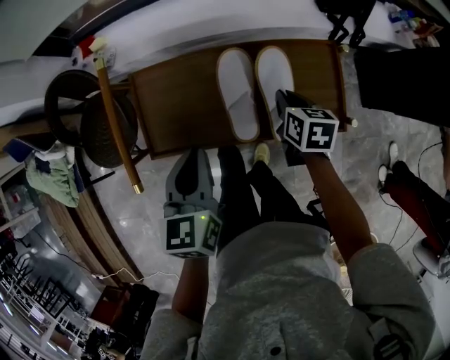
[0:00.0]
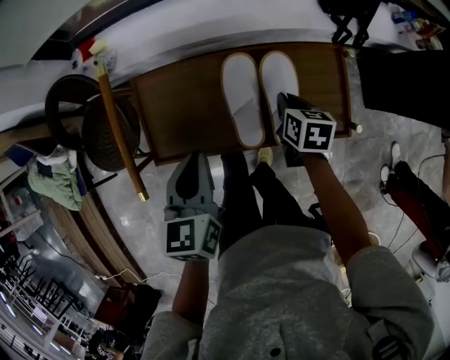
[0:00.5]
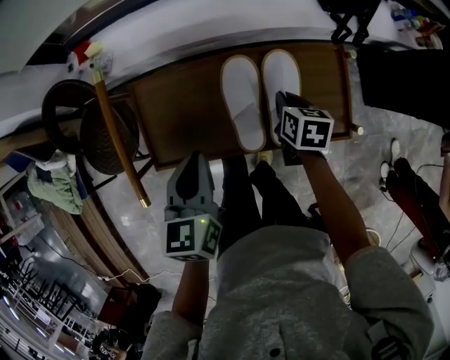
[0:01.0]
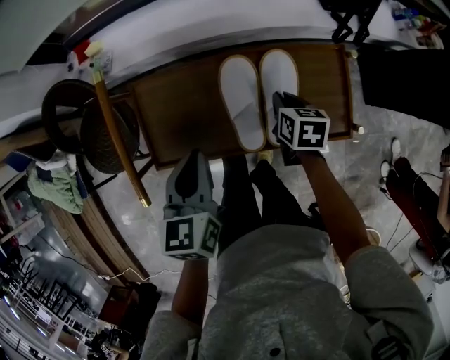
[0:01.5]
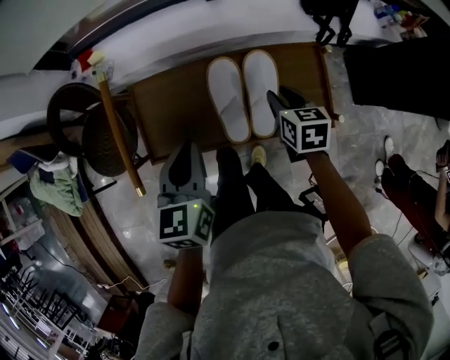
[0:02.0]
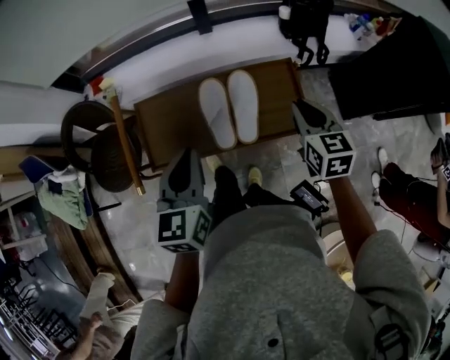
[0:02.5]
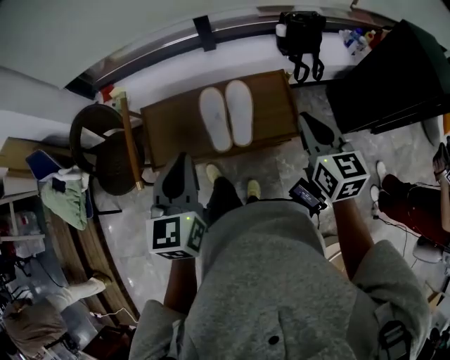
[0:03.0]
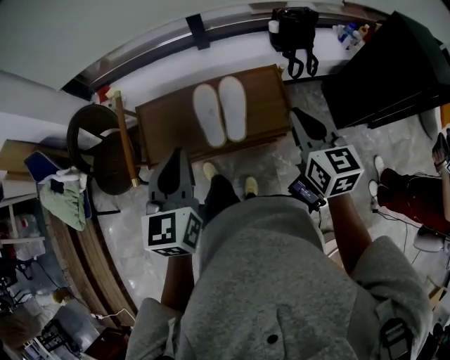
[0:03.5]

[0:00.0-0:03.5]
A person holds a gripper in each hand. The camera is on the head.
0:00.0 to 0:02.0: The right gripper opens.
0:02.0 to 0:03.5: The right gripper is displaced upward, backward and to the right by roughly 30 cm, turns by about 30 degrees, and closes its fingers; the left gripper is displaced upward and backward by about 20 cm.

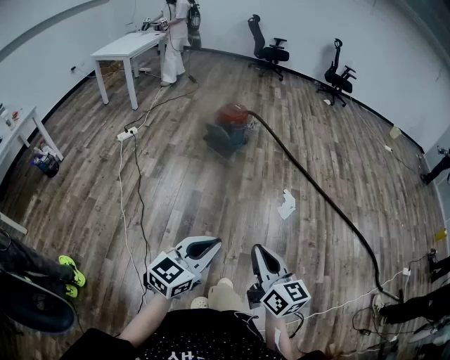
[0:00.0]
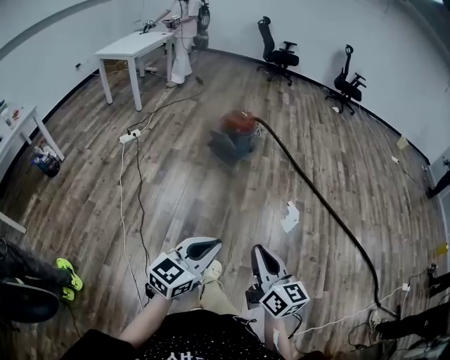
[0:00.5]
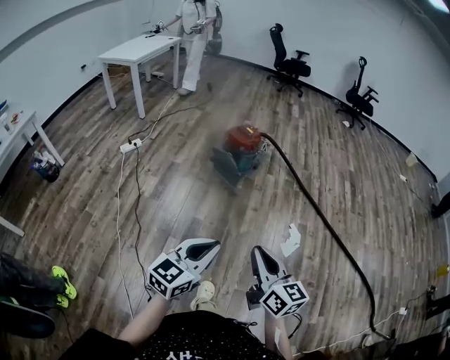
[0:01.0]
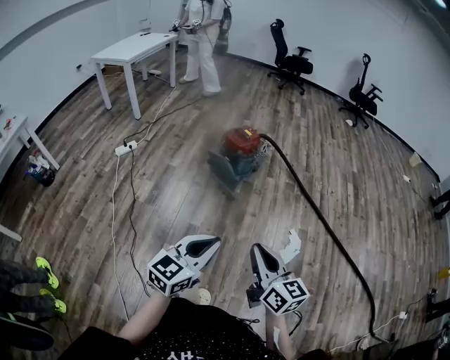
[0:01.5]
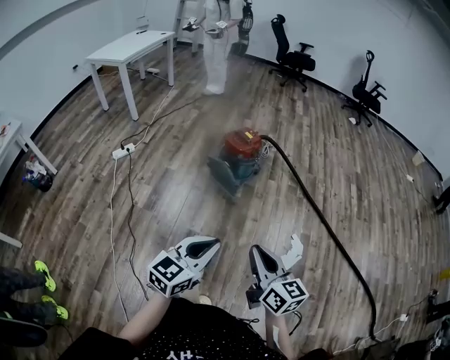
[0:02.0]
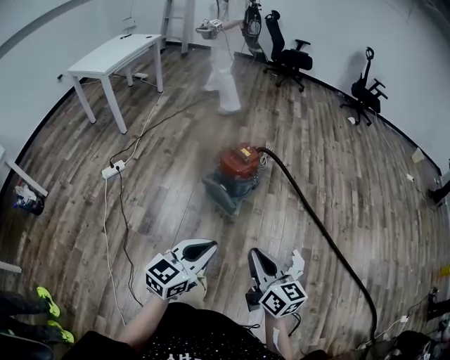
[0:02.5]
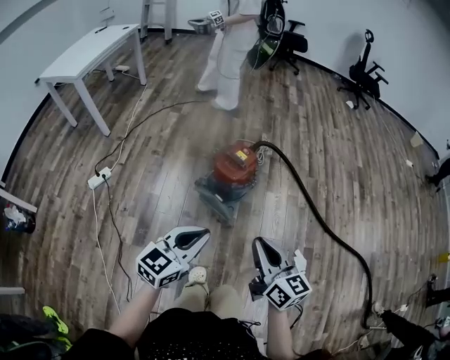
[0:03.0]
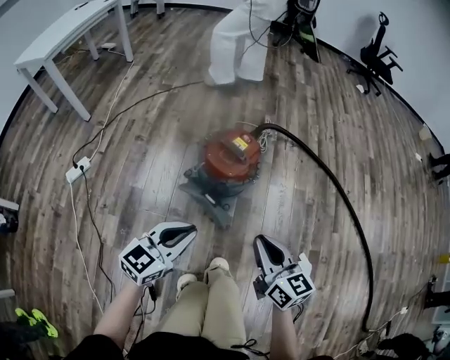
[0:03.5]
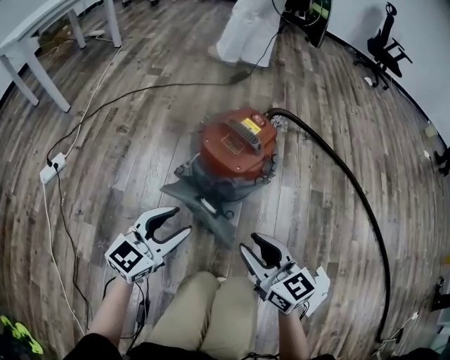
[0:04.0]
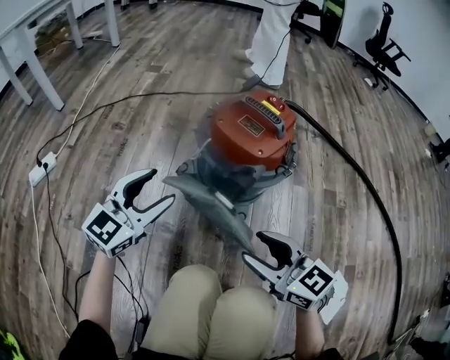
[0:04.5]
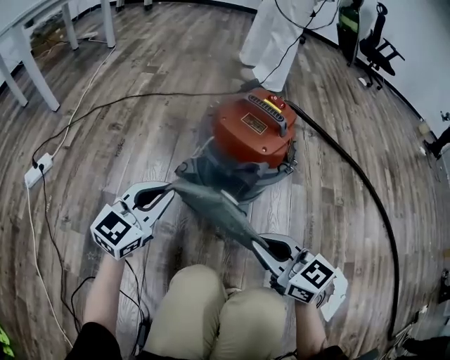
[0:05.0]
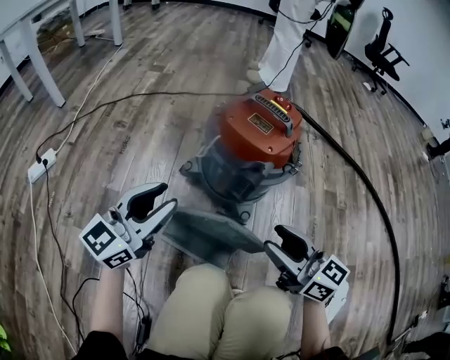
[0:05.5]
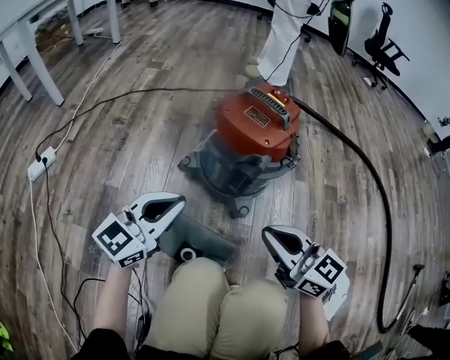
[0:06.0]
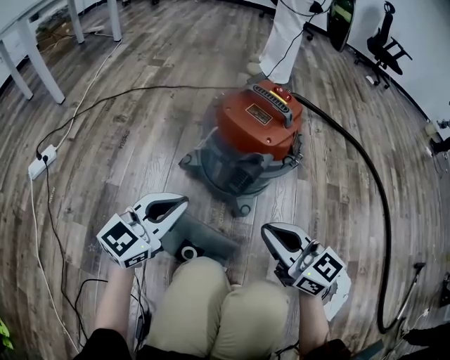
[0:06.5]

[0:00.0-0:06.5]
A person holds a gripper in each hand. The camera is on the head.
0:00.0 to 0:02.0: Both grippers are carried forward, some 40 cm.
0:02.0 to 0:04.5: The pair of grippers is taken forward, approximately 60 cm. The two grippers go roughly 50 cm downward. The left gripper opens its fingers; the right gripper swivels some 30 degrees, and opens up.
0:04.5 to 0:06.5: The left gripper travels backward by approximately 5 cm, and closes up. Meanwhile the right gripper closes up.

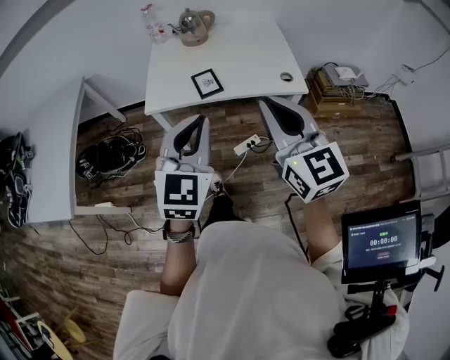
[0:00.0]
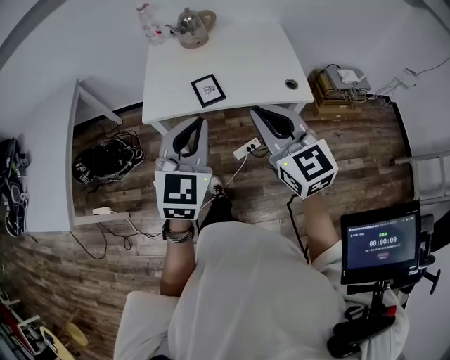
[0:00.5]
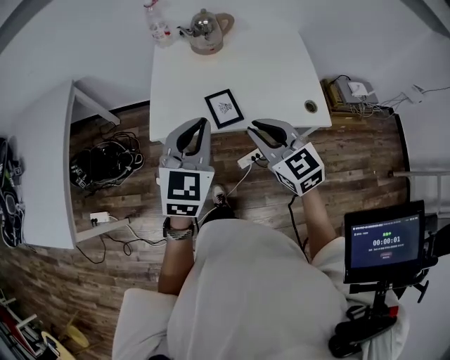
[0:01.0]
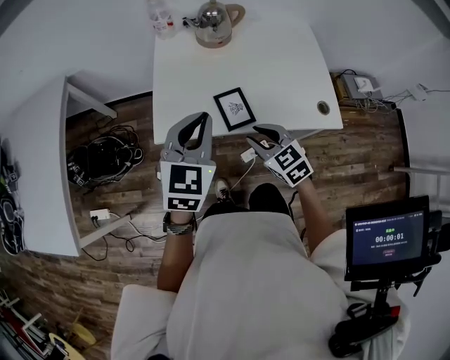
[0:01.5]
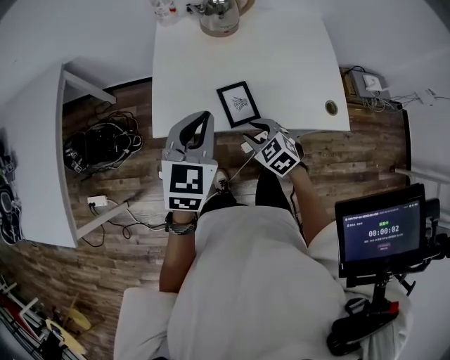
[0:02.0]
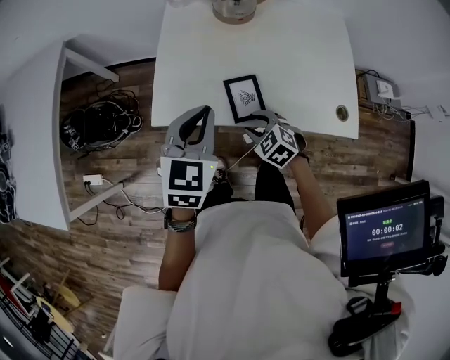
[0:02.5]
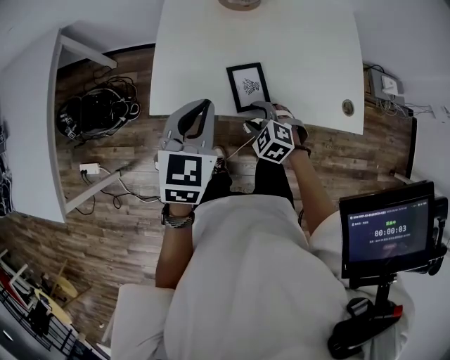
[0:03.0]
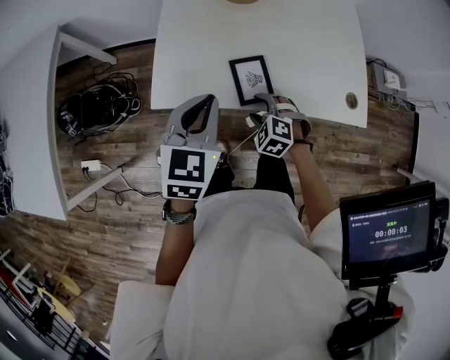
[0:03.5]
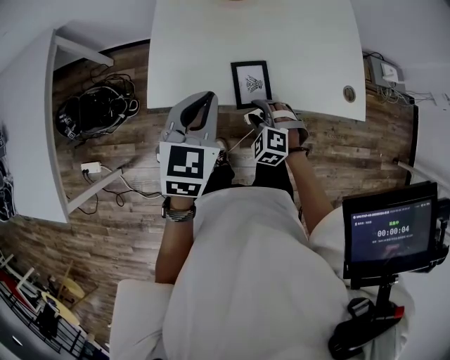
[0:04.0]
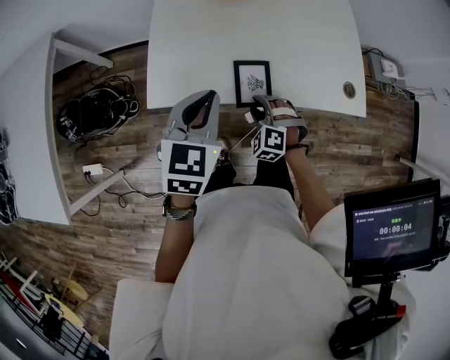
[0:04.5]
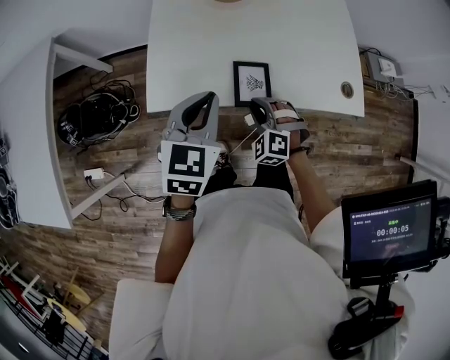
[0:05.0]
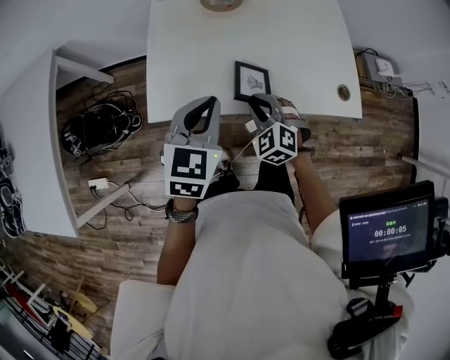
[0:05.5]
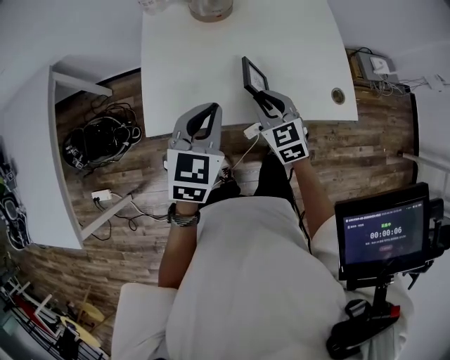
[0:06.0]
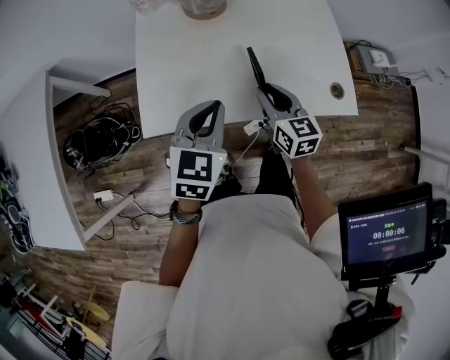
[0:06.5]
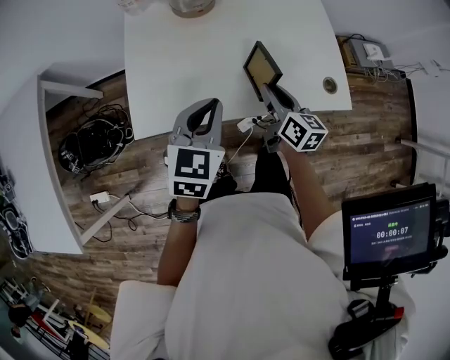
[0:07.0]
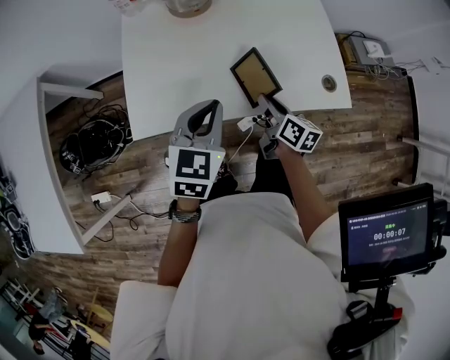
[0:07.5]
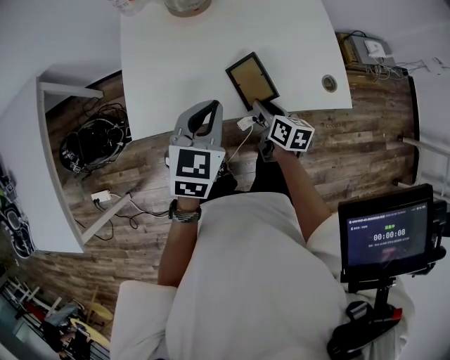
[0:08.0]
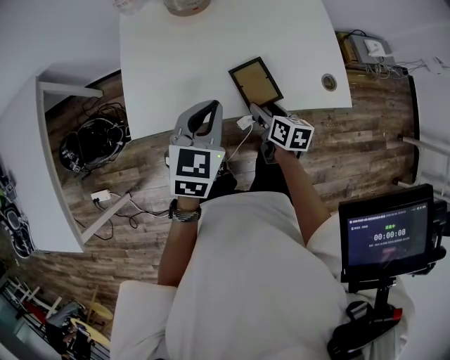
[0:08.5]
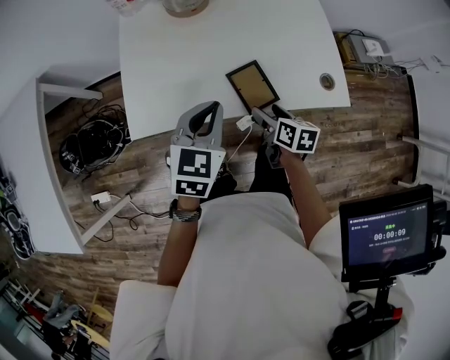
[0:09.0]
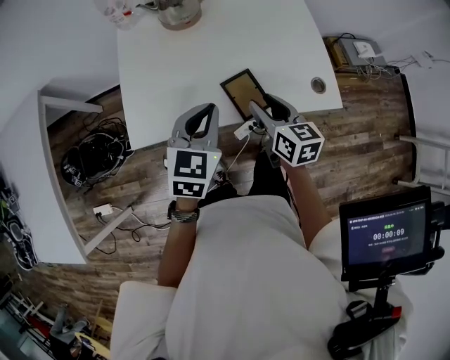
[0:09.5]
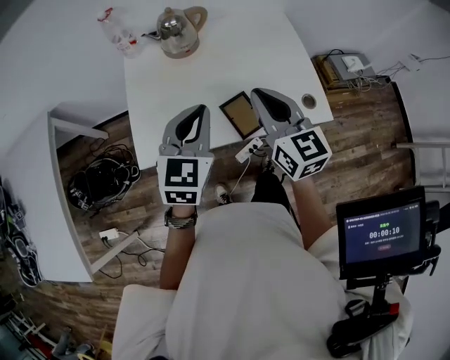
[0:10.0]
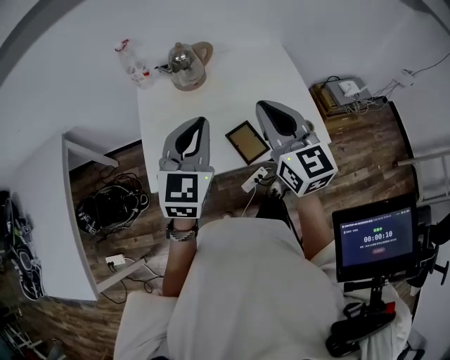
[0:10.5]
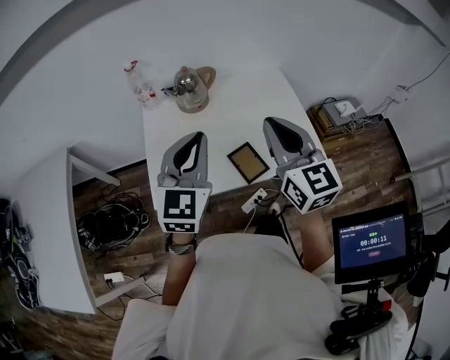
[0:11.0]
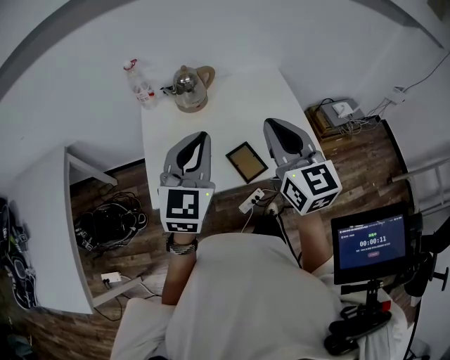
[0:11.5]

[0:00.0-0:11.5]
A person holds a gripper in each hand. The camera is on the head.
0:00.0 to 0:02.0: The left gripper shifts about 30 cm forward and downward; the right gripper travels downward and forward by roughly 40 cm, tilts its fingers approximately 50 degrees downward, and opens up.
0:02.0 to 0:04.0: Both grippers move downward, some 5 cm. The right gripper swivels some 30 degrees.
0:04.0 to 0:06.0: The right gripper heads upward and forward, covering some 15 cm, and twists some 40 degrees clockwise, seen from behind.
0:06.0 to 0:07.5: The right gripper goes approximately 10 cm to the right and downward, and twists roughly 60 degrees clockwise, seen from behind.
0:07.5 to 0:09.5: The right gripper heads upward, covering some 10 cm, changes its angle by approximately 30 degrees, and opens and closes again.
0:09.5 to 0:11.5: Both grippers move upward, about 20 cm. The right gripper changes its angle by approximately 30 degrees, and closes its fingers, while the left gripper turns by roughly 20 degrees.

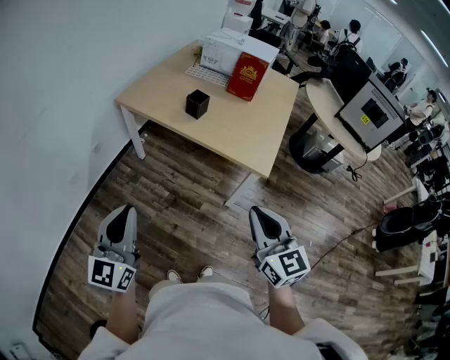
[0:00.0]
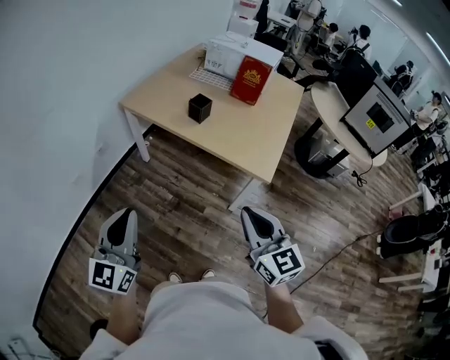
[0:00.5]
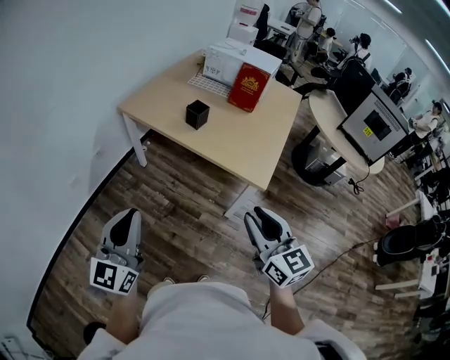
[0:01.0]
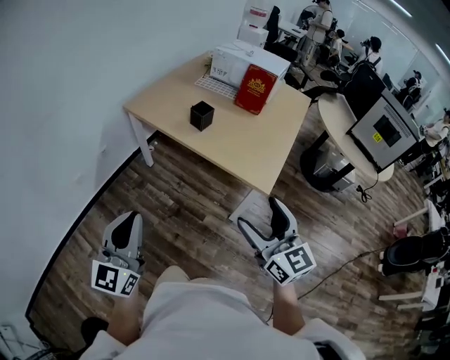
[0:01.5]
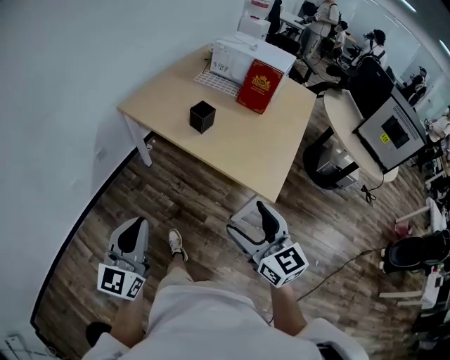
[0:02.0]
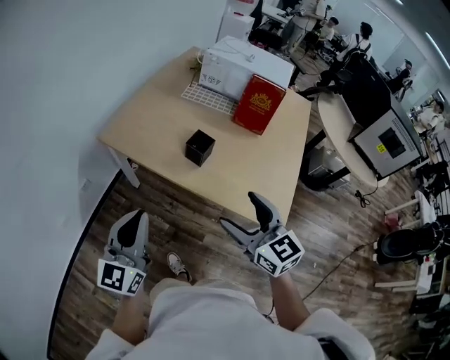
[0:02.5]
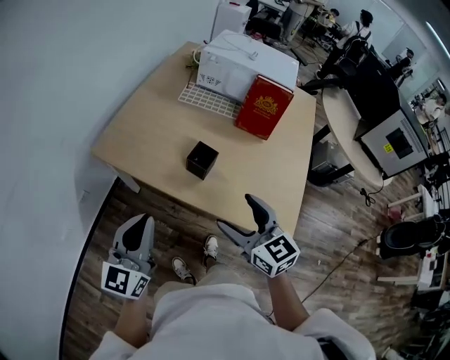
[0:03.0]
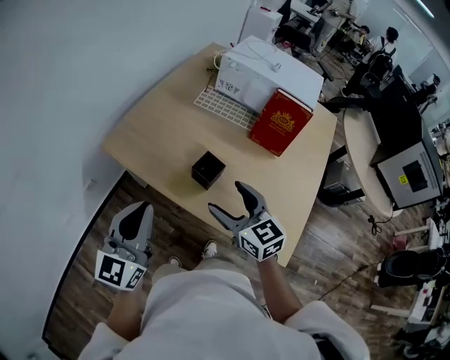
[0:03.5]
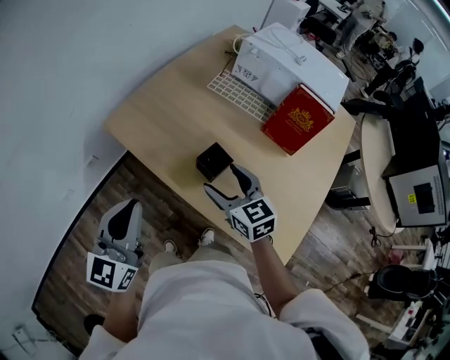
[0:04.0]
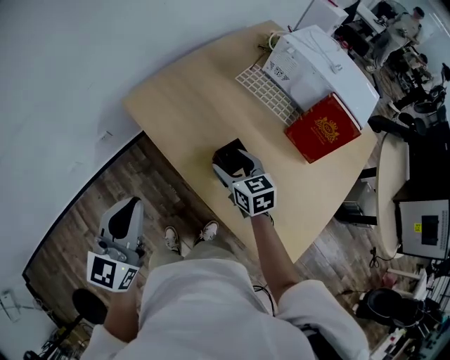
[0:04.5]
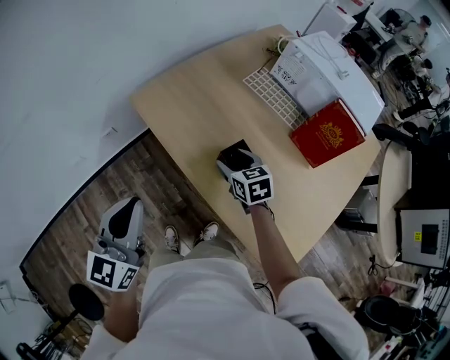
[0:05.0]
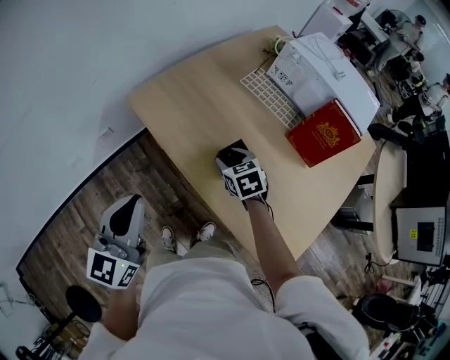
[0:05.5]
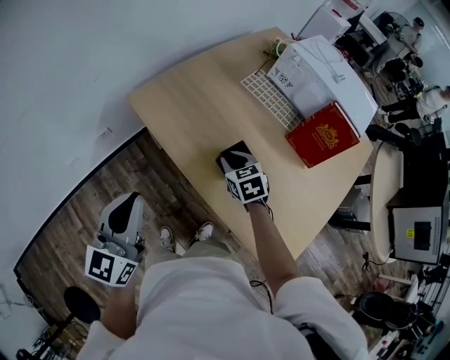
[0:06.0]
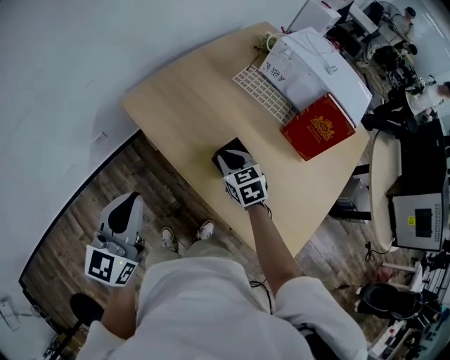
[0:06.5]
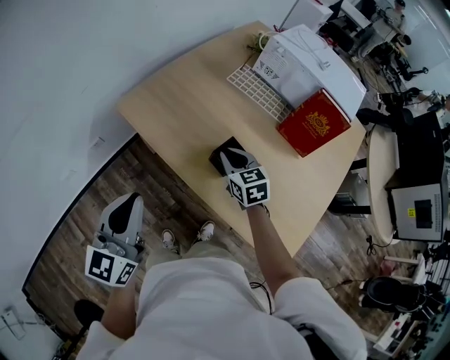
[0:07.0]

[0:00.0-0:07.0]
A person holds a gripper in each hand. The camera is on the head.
0:00.0 to 0:02.0: The left gripper goes roughly 10 cm forward and to the right. The right gripper heads forward, covering about 10 cm, and opens up.
0:02.0 to 0:03.5: The two grippers go roughly 40 cm forward.
0:03.5 to 0:05.0: The right gripper goes roughly 20 cm downward and forward, and turns by approximately 20 degrees, while the left gripper moves to the left, approximately 5 cm, and turns by approximately 20 degrees.
0:05.0 to 0:07.0: The right gripper closes up.
